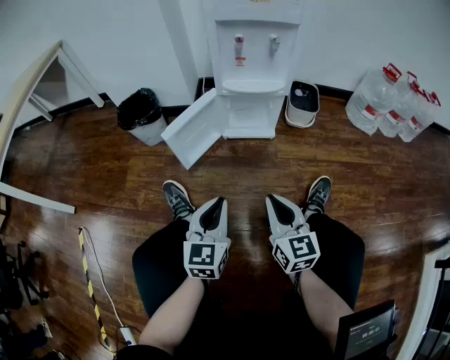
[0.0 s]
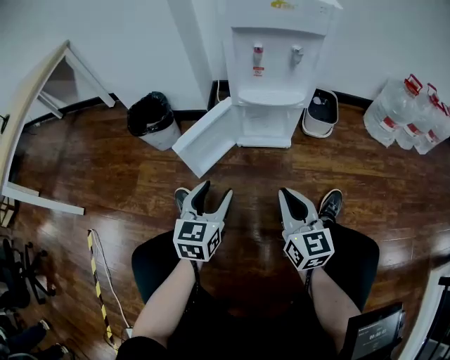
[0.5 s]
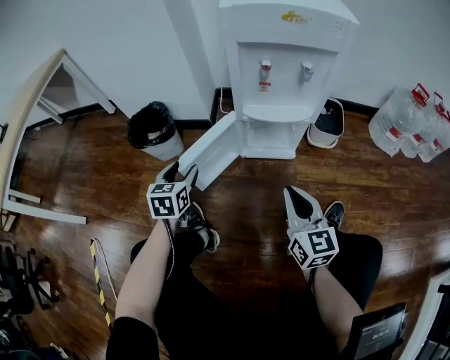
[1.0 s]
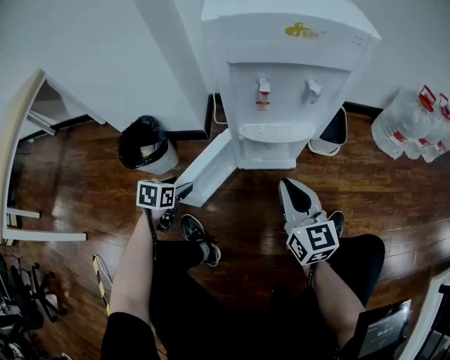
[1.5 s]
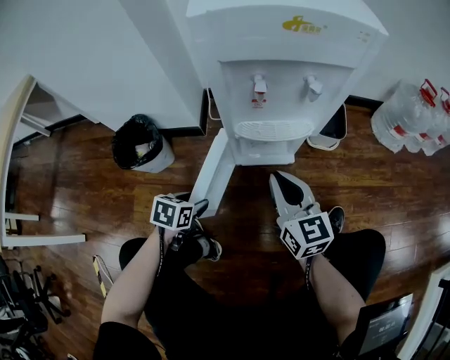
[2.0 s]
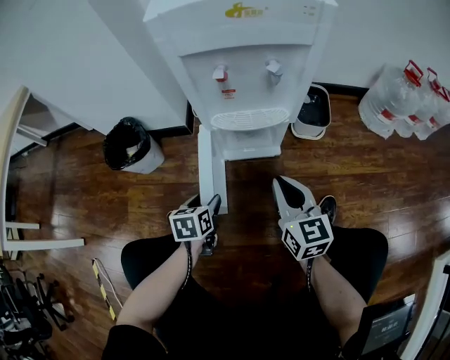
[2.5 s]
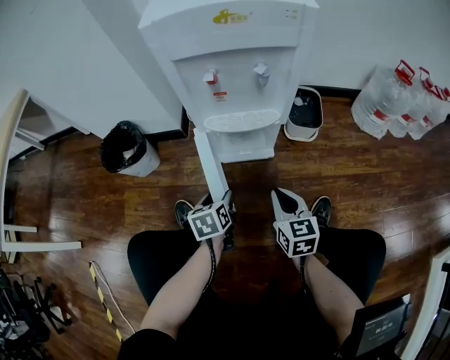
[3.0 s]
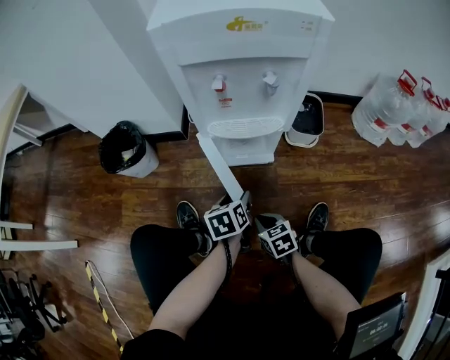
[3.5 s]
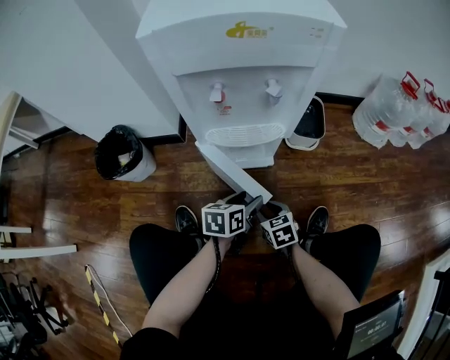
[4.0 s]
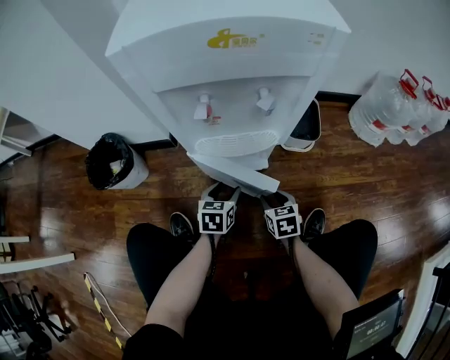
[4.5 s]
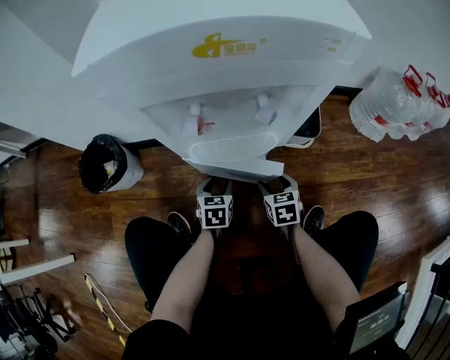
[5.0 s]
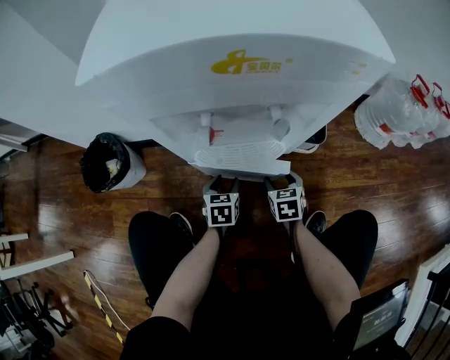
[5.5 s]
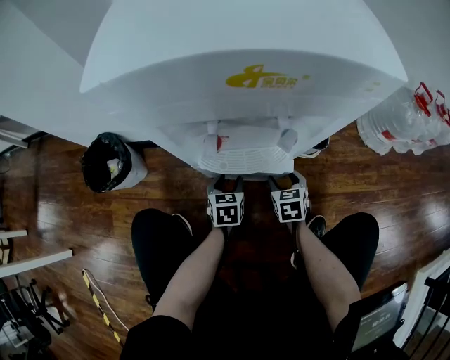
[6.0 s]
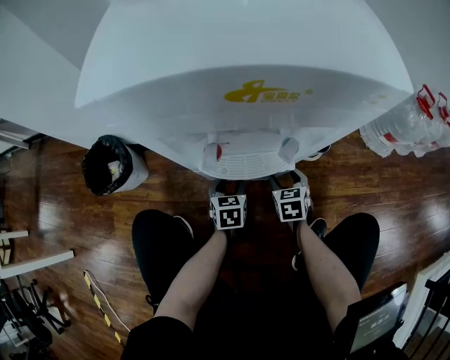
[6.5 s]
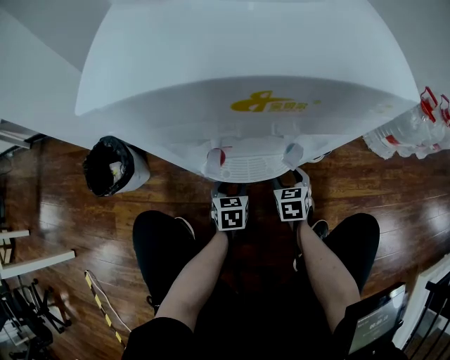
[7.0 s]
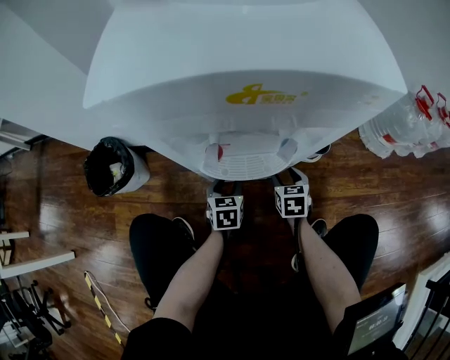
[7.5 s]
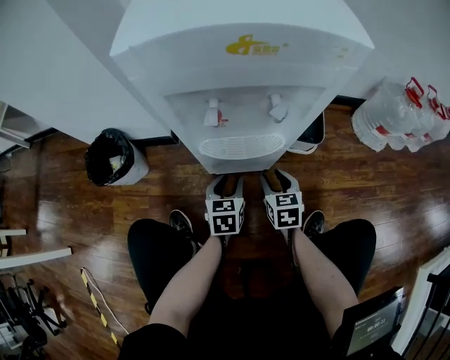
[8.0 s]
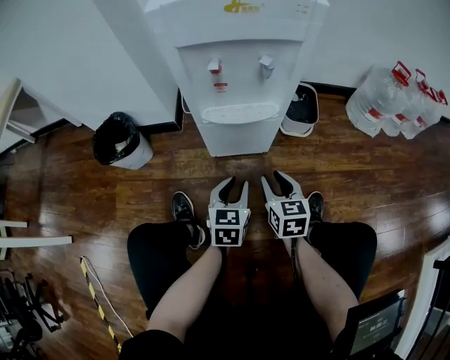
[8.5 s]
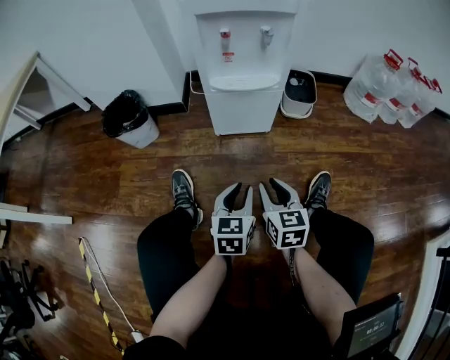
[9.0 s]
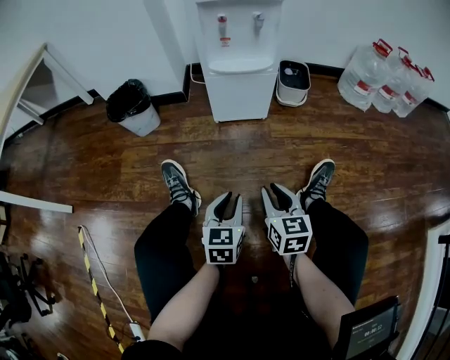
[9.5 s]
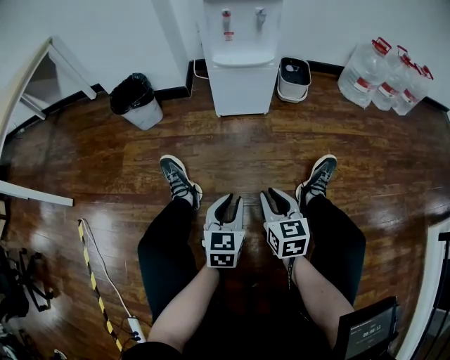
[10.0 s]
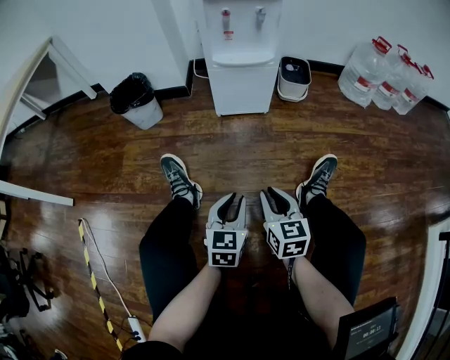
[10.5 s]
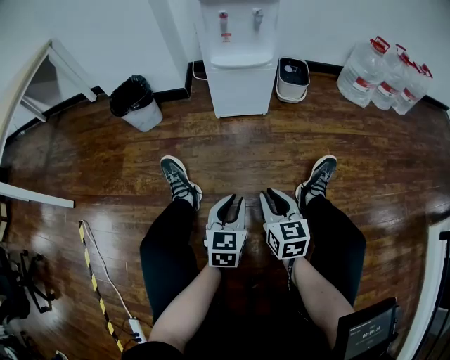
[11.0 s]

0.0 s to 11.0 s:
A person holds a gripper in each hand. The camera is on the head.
0.0 to 2.0 s: The left gripper moves forward, downward and to the left, approximately 30 cm, angles its fingers downward, by approximately 50 degrees, and opens its fingers. The right gripper moves forward, approximately 25 cm.
2.0 to 3.5 s: The left gripper heads to the right, covering roughly 20 cm, and swivels about 30 degrees. The right gripper travels downward and backward by approximately 25 cm, and tilts its fingers roughly 40 degrees downward.
3.5 to 5.5 s: The right gripper moves forward and to the right, roughly 25 cm, swivels about 20 degrees, and opens its fingers. The left gripper is displaced forward and downward by some 15 cm, and rotates approximately 20 degrees.
5.5 to 7.5 s: The grippers stay close to where they were, moving slightly.
7.5 to 9.0 s: The left gripper travels backward and upward by approximately 35 cm, while the right gripper moves backward, about 35 cm, rotates approximately 20 degrees, and closes.
9.0 to 11.0 s: Both grippers move backward, approximately 15 cm.

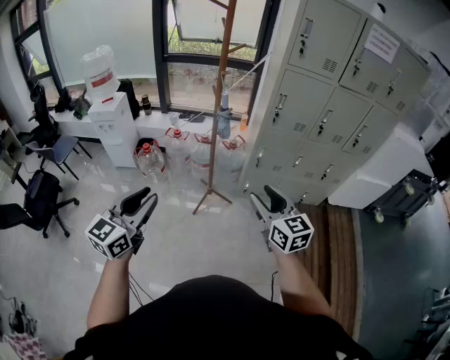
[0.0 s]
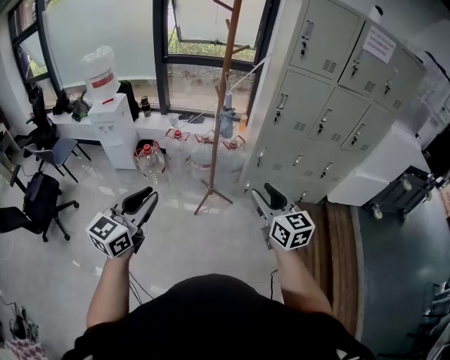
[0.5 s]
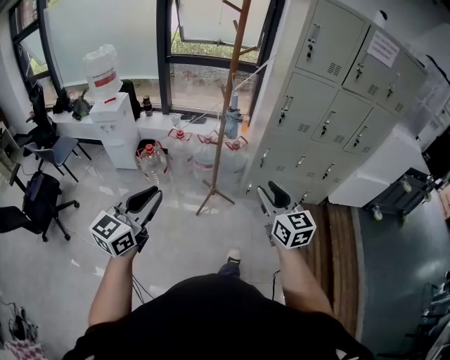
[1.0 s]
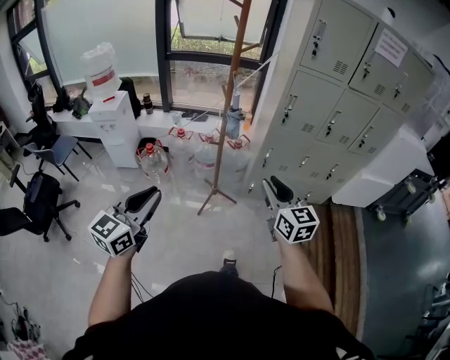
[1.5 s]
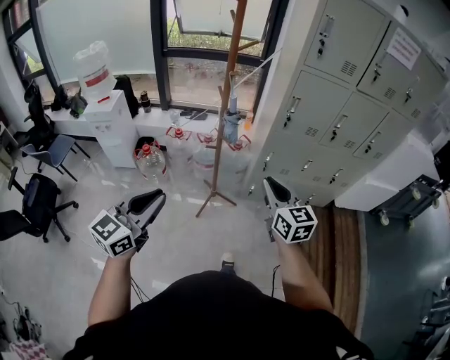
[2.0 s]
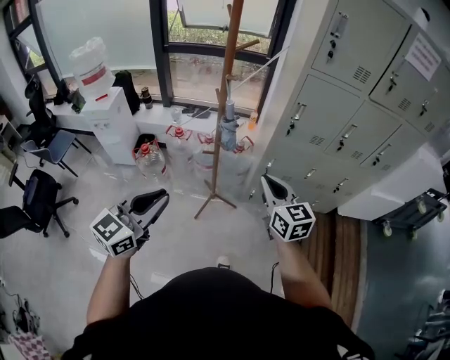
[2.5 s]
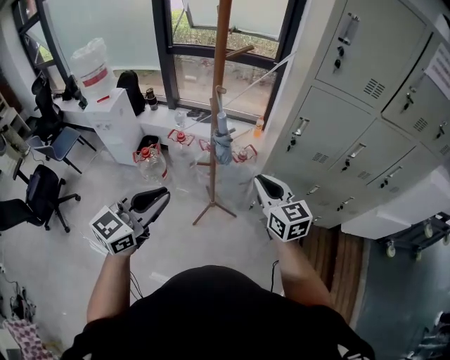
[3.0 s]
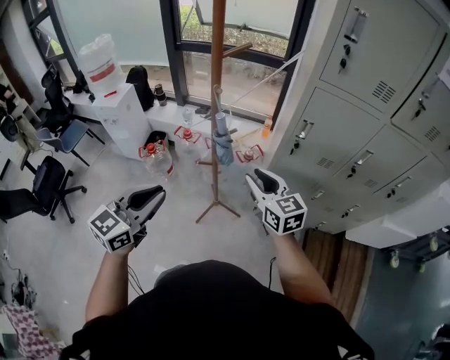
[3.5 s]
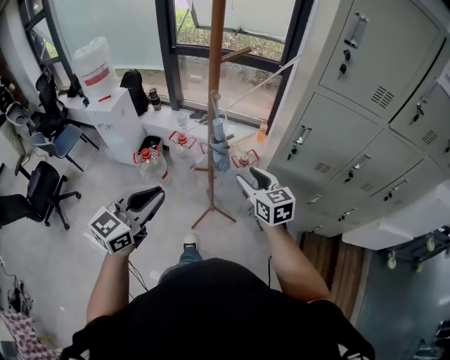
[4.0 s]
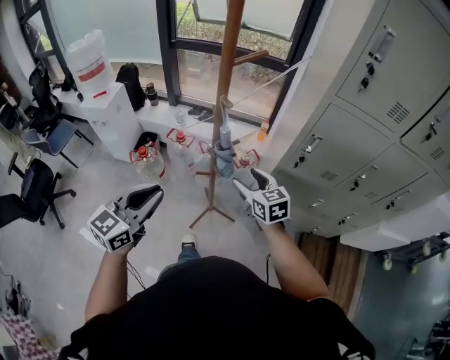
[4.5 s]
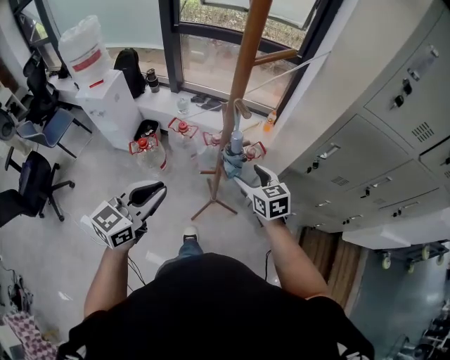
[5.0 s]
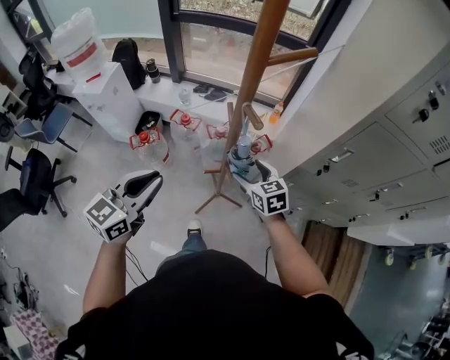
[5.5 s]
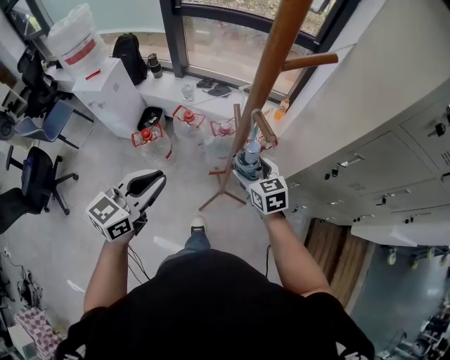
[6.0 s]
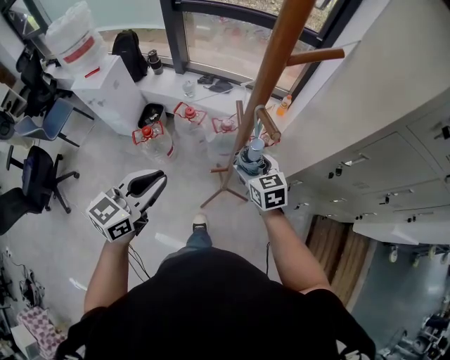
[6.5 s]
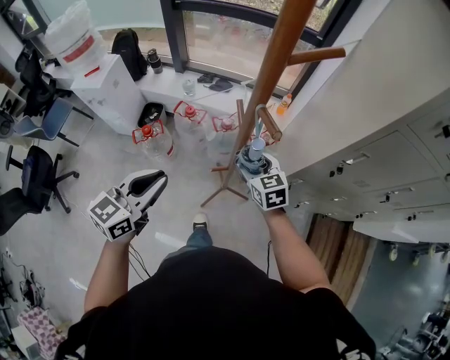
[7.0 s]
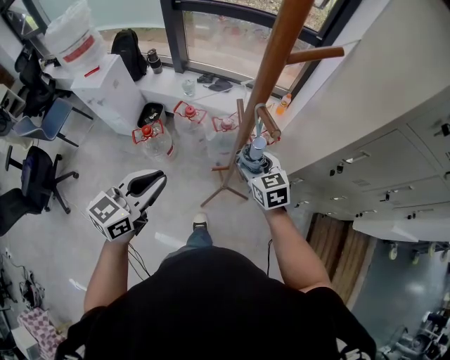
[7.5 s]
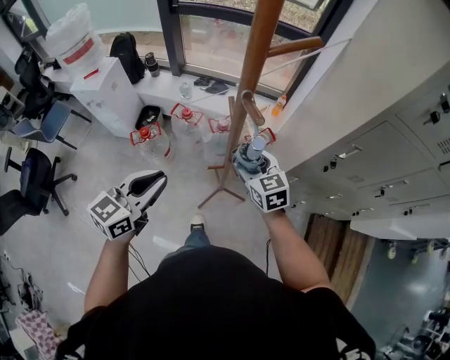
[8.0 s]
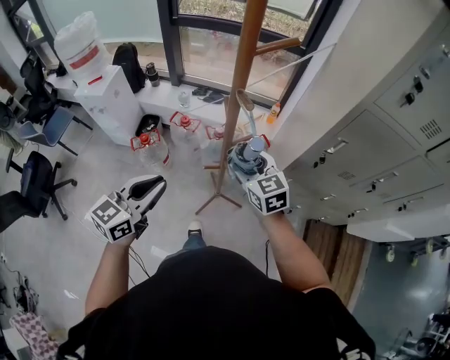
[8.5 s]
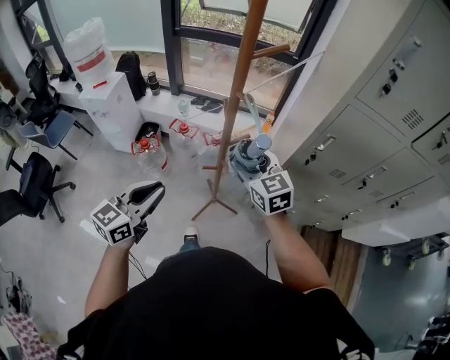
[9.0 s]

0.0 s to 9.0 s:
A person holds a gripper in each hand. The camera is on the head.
0.0 to 2.0 s: The two grippers go roughly 15 cm forward. The right gripper closes up.
2.0 to 4.5 s: The two grippers go some 35 cm forward. The right gripper changes its angle by about 20 degrees, and opens up.
4.5 to 7.0 s: The right gripper is displaced forward, downward and to the left by some 20 cm, while the left gripper travels forward, to the left and downward by about 20 cm.
7.0 to 9.0 s: The left gripper goes some 15 cm backward; the right gripper shifts approximately 20 cm upward and backward.

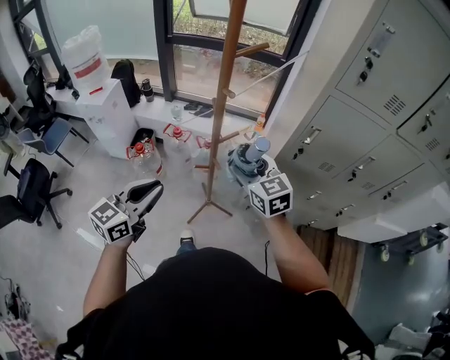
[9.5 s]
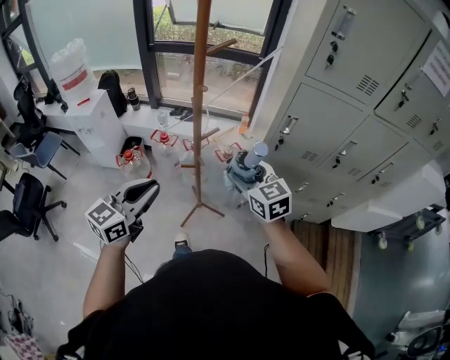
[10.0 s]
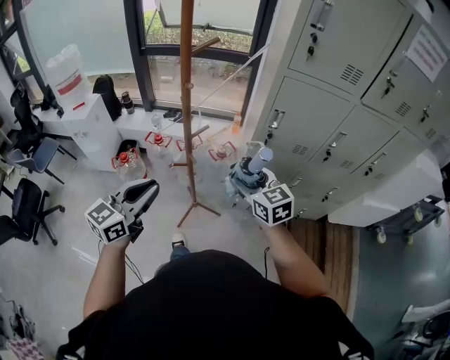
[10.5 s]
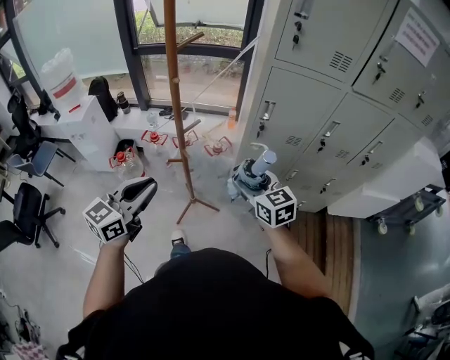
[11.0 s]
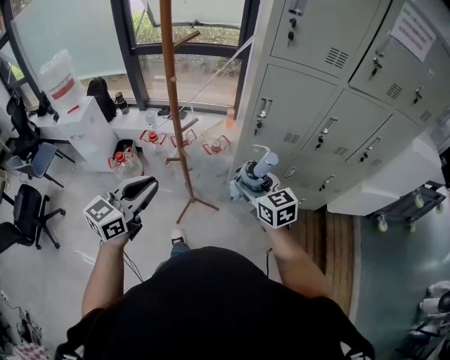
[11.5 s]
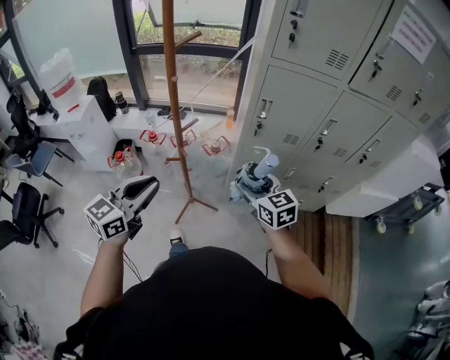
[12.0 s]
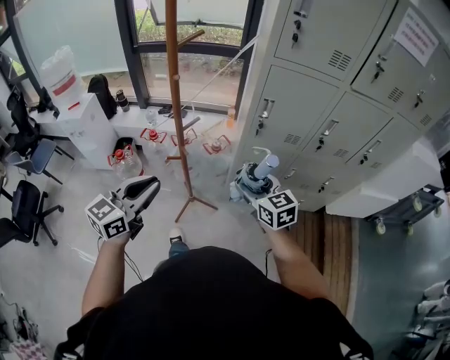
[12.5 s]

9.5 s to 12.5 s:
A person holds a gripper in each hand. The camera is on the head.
9.5 to 11.0 s: The right gripper goes approximately 20 cm to the right and backward. The left gripper moves to the right and backward, about 15 cm.
11.0 to 12.5 s: The grippers make only small movements.

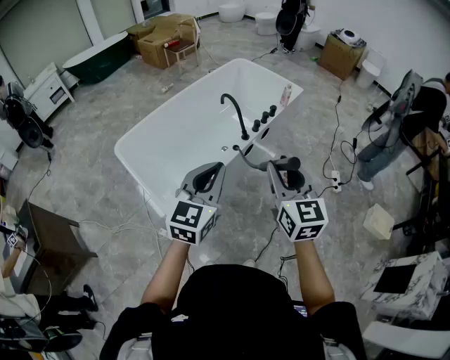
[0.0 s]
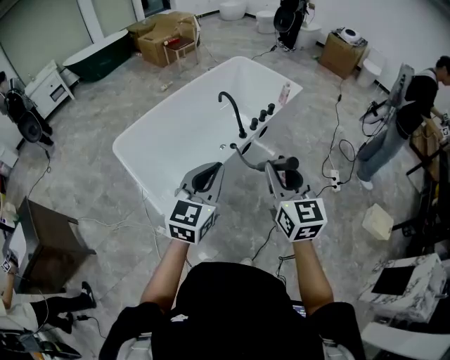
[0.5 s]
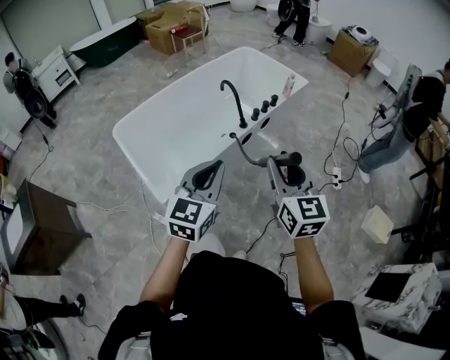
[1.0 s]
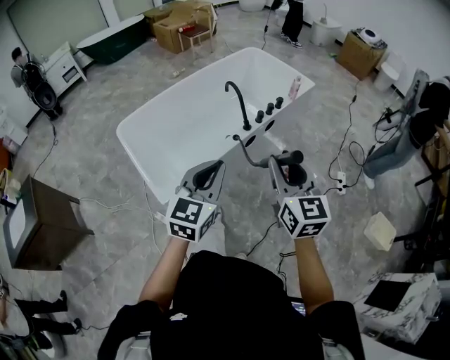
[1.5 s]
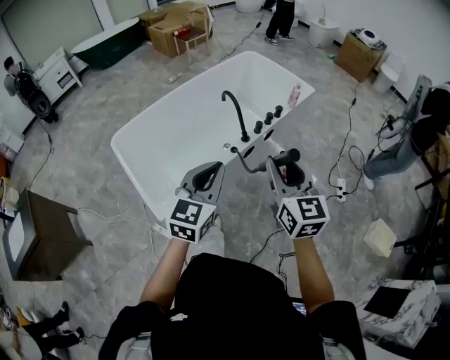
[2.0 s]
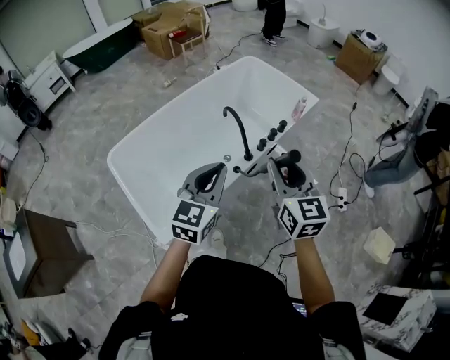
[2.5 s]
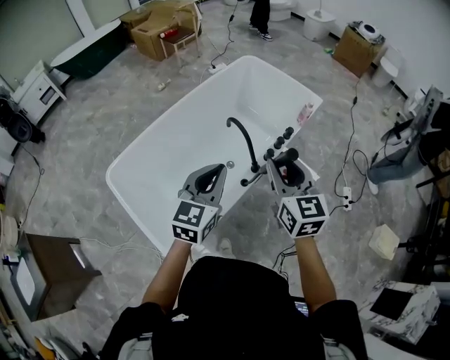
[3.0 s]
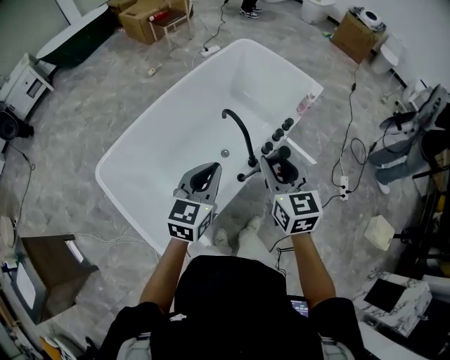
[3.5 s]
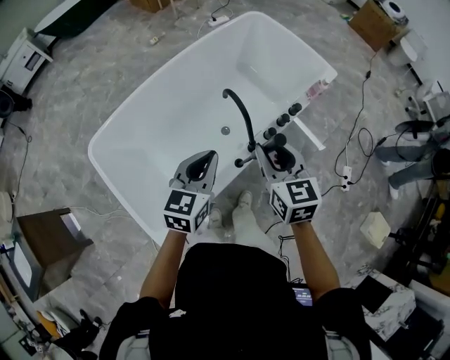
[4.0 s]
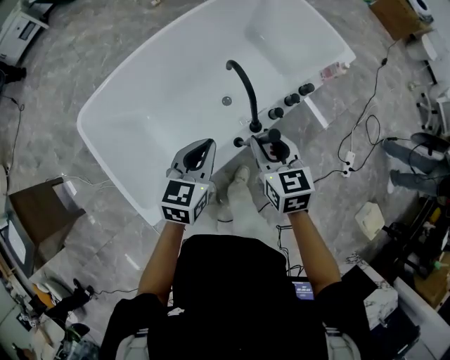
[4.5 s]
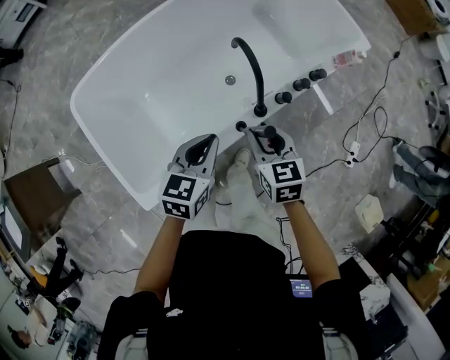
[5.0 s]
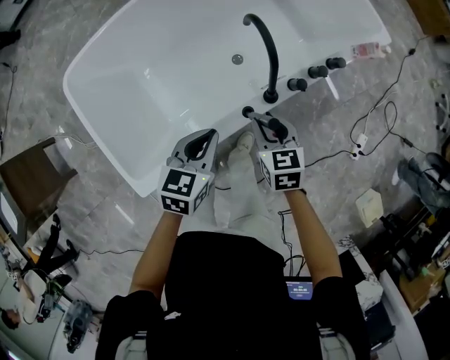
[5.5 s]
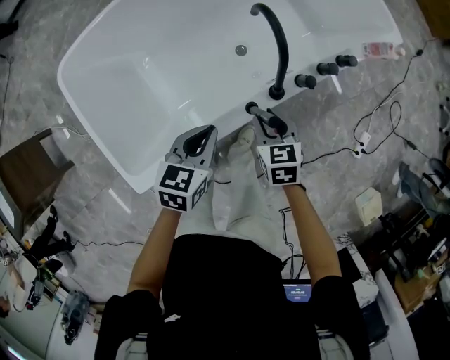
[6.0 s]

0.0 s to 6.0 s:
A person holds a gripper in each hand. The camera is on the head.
0.0 to 2.0 s: The two grippers go some 10 cm forward and to the right.
2.0 to 4.0 s: Both grippers move forward, some 35 cm.
4.0 to 6.0 s: The grippers both shift downward by about 30 cm. The left gripper swivels roughly 20 degrees; the right gripper turns by about 30 degrees.
